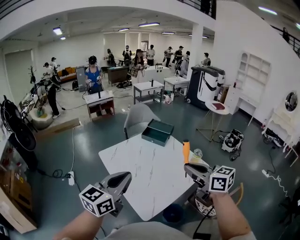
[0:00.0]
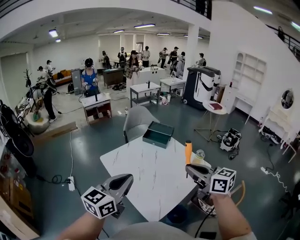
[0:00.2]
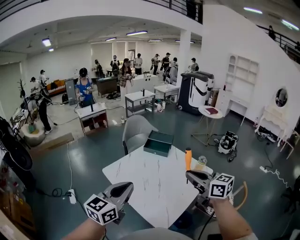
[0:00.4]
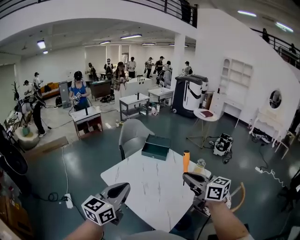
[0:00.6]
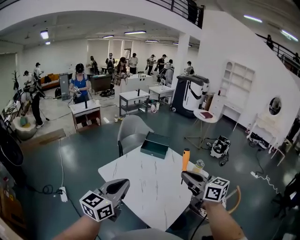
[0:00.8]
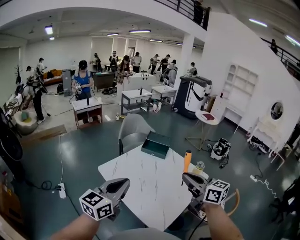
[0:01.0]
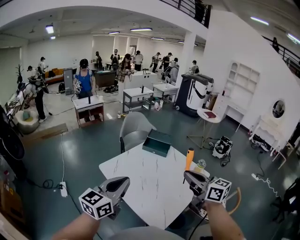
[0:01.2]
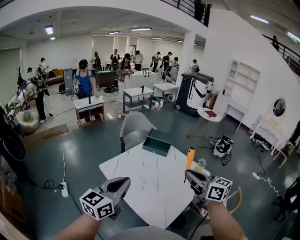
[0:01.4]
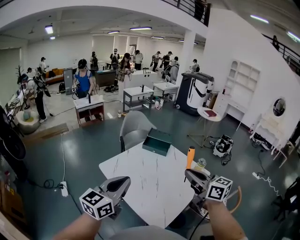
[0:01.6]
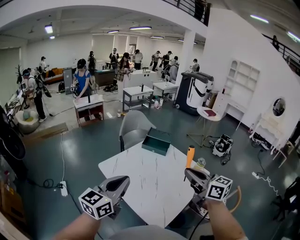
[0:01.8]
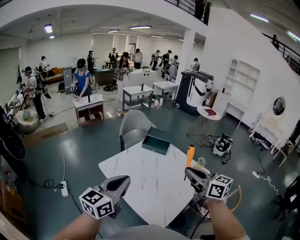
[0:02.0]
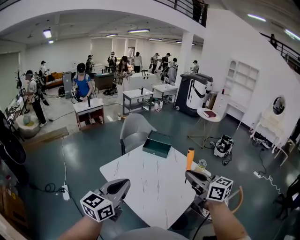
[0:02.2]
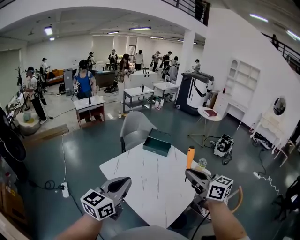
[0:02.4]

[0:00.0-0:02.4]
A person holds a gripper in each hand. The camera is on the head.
0.0 to 1.2 s: The left gripper moves to the left and forward, about 15 cm, while the right gripper is displaced to the left by approximately 10 cm.
1.2 to 2.4 s: Neither gripper changes place.

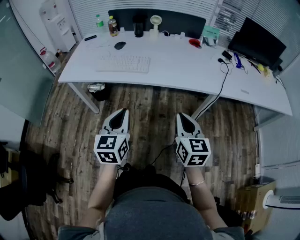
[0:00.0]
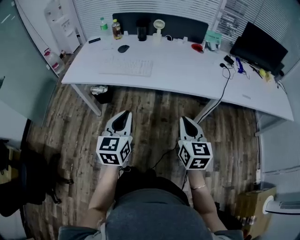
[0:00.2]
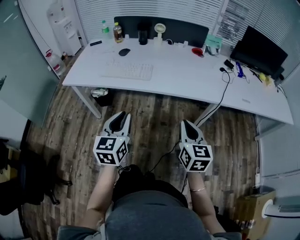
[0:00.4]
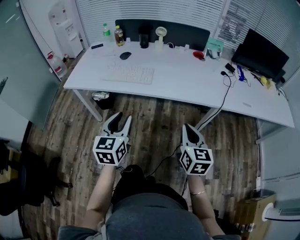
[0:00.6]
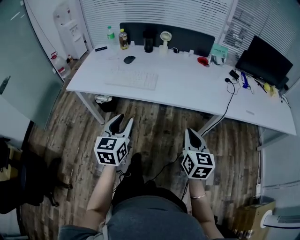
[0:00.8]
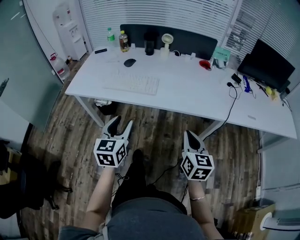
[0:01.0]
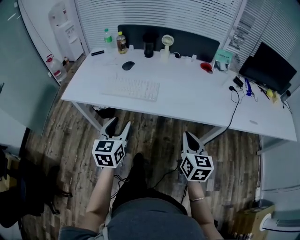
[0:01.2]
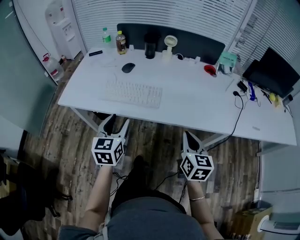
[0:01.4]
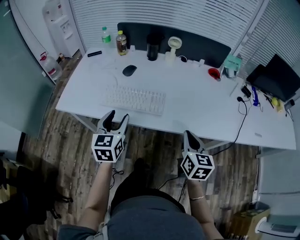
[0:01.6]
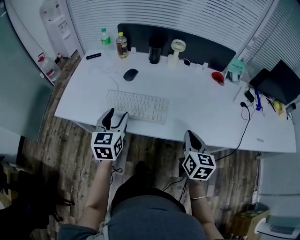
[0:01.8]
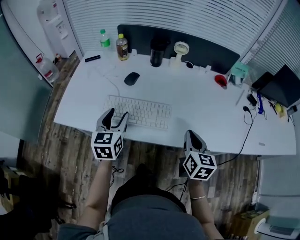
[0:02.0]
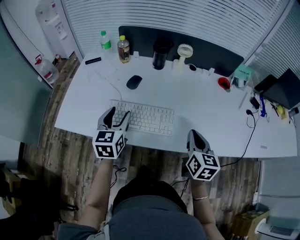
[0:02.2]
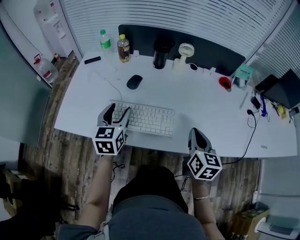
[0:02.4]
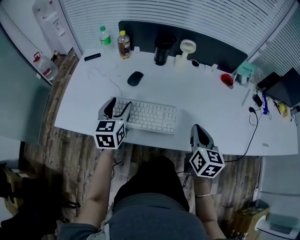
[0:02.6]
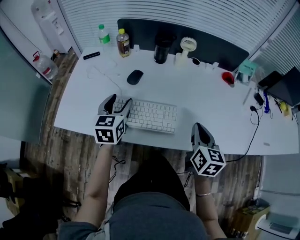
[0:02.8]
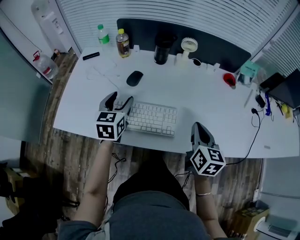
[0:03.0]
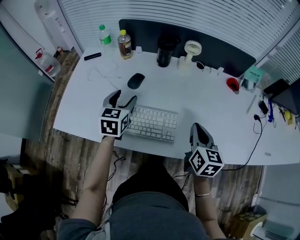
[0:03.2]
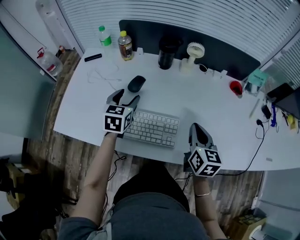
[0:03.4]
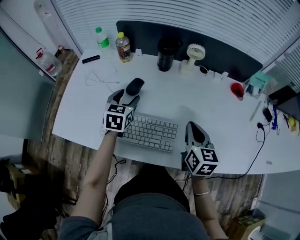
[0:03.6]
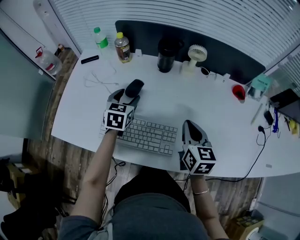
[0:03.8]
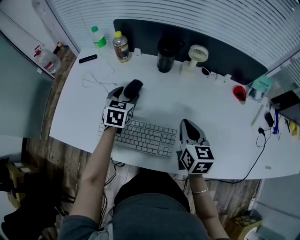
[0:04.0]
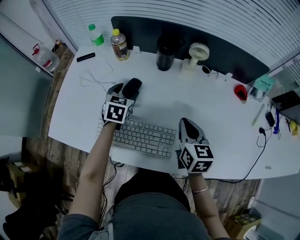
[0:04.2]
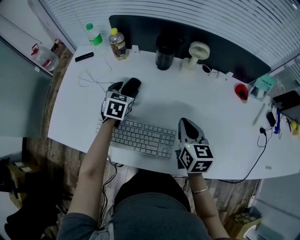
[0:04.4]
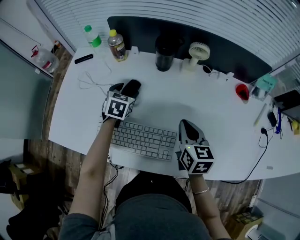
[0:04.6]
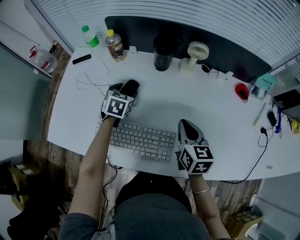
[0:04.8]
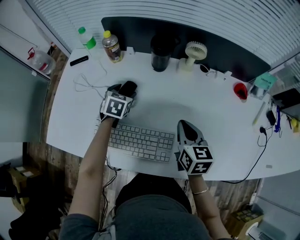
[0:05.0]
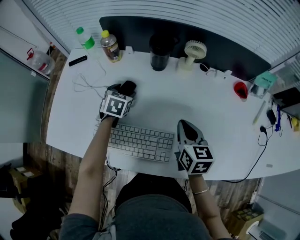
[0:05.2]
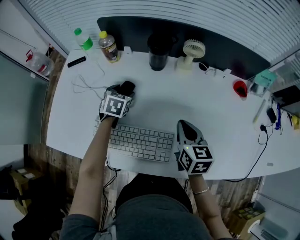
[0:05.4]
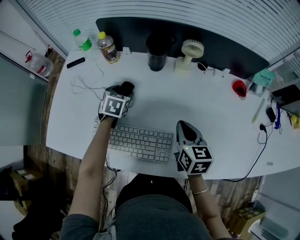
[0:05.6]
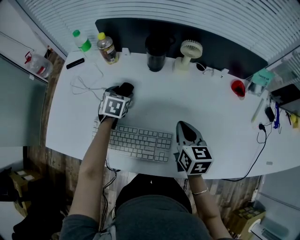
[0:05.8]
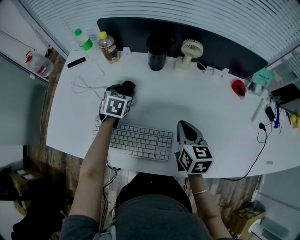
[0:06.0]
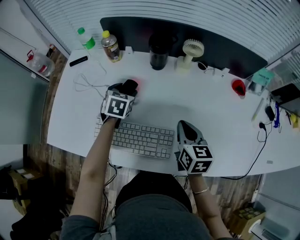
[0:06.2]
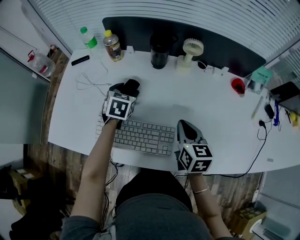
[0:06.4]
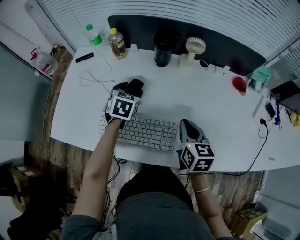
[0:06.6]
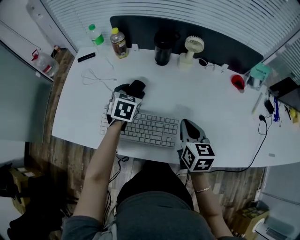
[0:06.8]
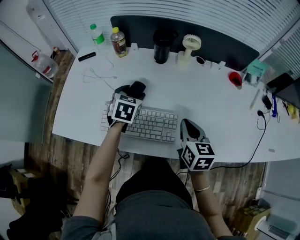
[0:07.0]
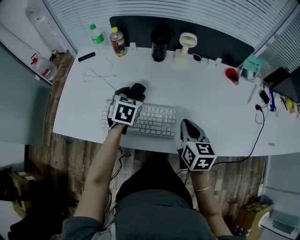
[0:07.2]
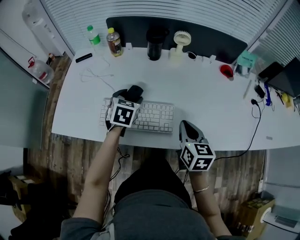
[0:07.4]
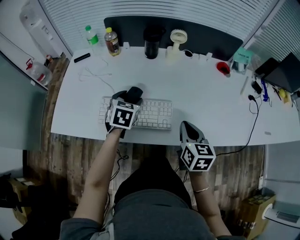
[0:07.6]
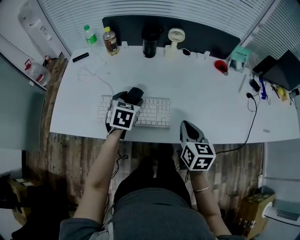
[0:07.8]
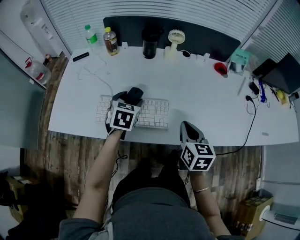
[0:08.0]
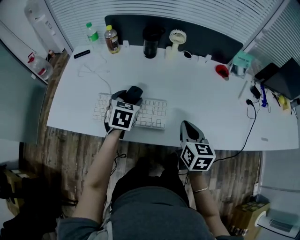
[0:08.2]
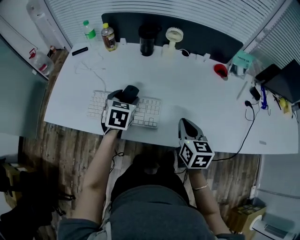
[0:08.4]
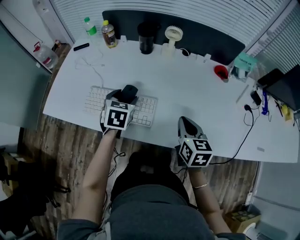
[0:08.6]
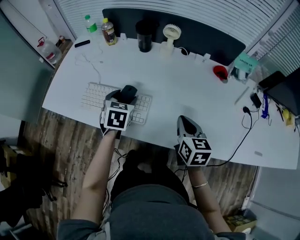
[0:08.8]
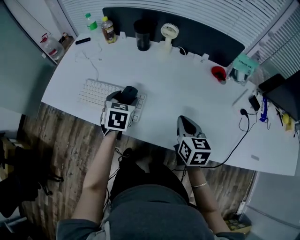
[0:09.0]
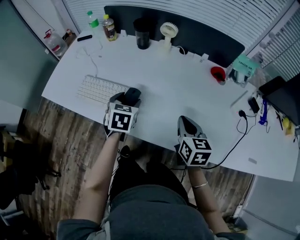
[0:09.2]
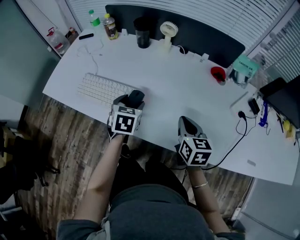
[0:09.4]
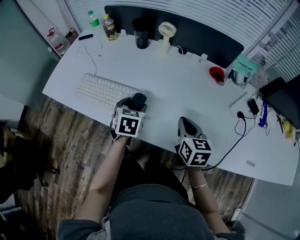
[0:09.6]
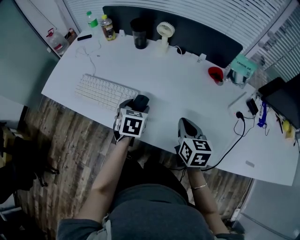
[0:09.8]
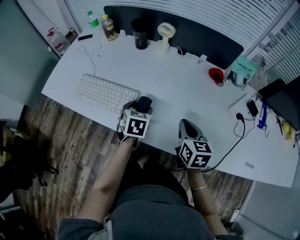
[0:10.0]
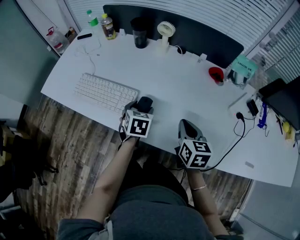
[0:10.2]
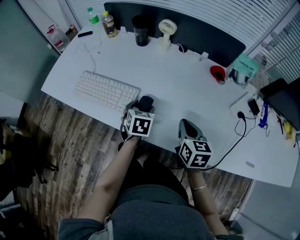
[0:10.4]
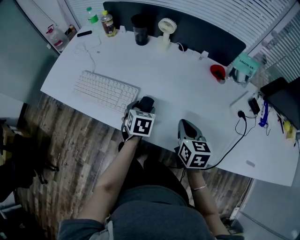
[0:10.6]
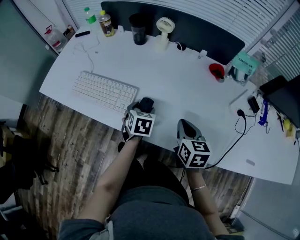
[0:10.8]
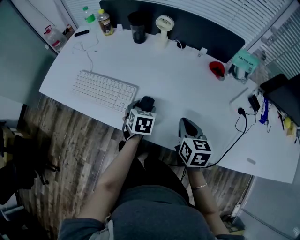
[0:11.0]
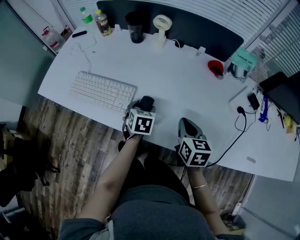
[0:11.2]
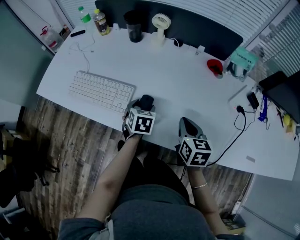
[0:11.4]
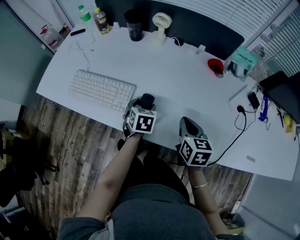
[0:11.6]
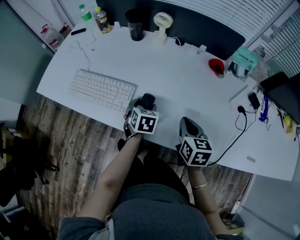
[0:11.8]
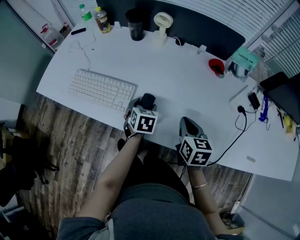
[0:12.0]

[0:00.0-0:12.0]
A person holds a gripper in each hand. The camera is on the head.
0.0 to 1.6 s: The right gripper goes approximately 20 cm forward. The left gripper is displaced forward and to the left by roughly 30 cm, and opens.
1.6 to 3.0 s: Both grippers move forward, some 20 cm.
3.0 to 4.4 s: The right gripper moves forward, some 15 cm. The left gripper moves forward and downward, about 20 cm.
4.4 to 6.0 s: There are only small adjustments of the grippers.
6.0 to 7.6 s: The right gripper heads backward, covering roughly 15 cm. Meanwhile the left gripper heads backward and upward, covering some 20 cm.
7.6 to 9.0 s: Both grippers move to the right, some 10 cm.
9.0 to 10.4 s: The right gripper goes about 5 cm to the right, while the left gripper moves to the right and downward, approximately 10 cm.
10.4 to 12.0 s: The grippers move only a little.

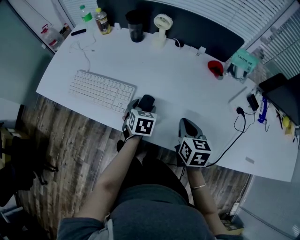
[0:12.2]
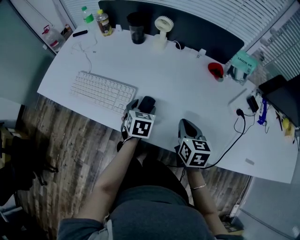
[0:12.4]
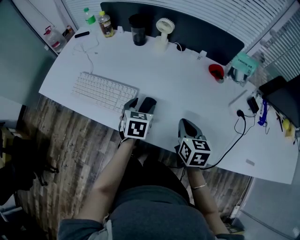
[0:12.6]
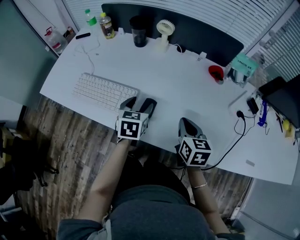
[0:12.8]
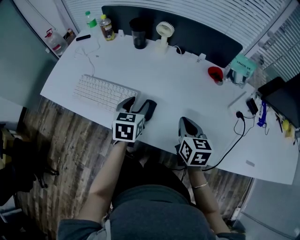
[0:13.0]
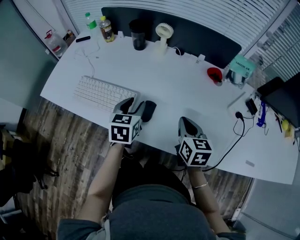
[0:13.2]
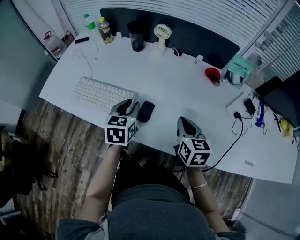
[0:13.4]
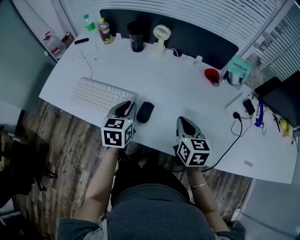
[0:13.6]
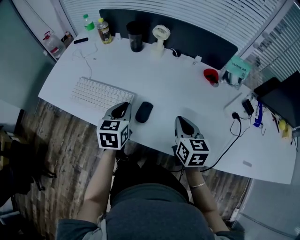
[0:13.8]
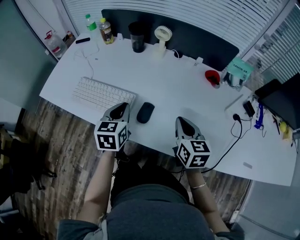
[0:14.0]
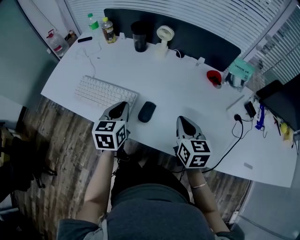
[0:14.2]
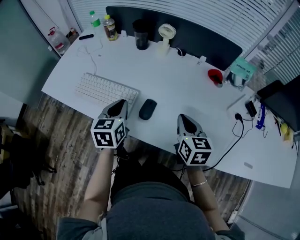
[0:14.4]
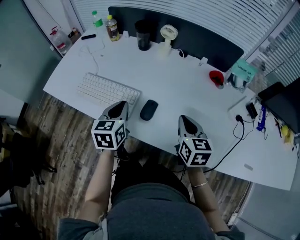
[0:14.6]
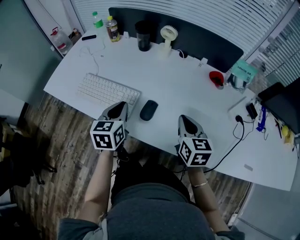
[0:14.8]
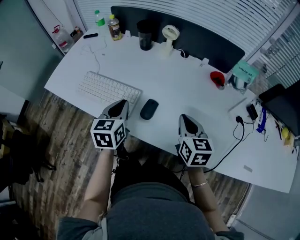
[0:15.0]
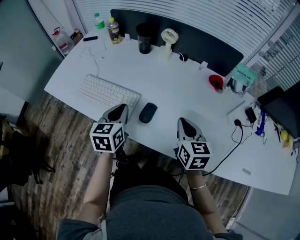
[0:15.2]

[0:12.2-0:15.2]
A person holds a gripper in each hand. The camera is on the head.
12.2 to 13.8 s: The right gripper ends up approximately 5 cm from where it was, while the left gripper moves upward and to the left, some 15 cm, swivels about 20 degrees, and closes up.
13.8 to 15.2 s: The grippers stay close to where they were, moving slightly.

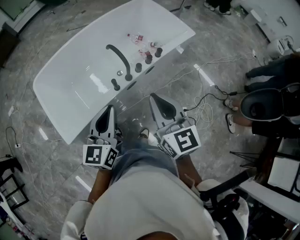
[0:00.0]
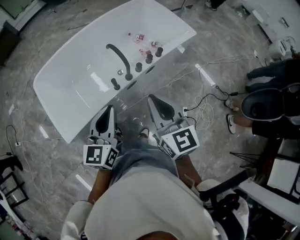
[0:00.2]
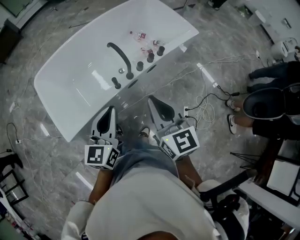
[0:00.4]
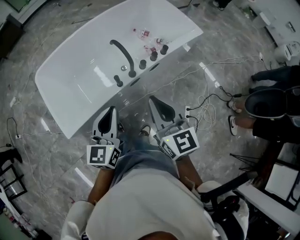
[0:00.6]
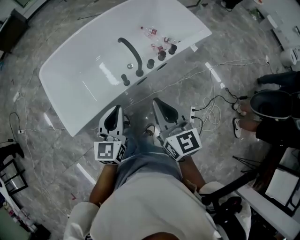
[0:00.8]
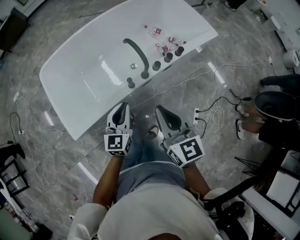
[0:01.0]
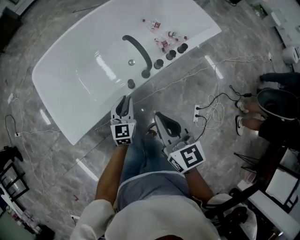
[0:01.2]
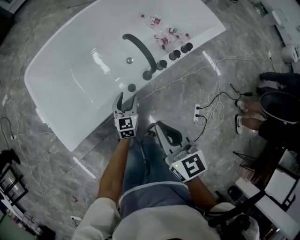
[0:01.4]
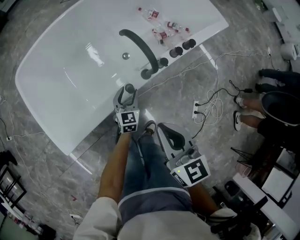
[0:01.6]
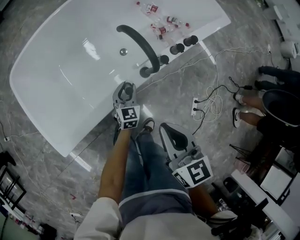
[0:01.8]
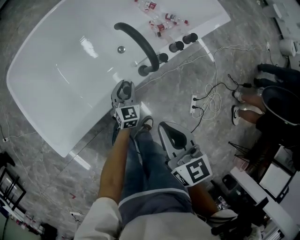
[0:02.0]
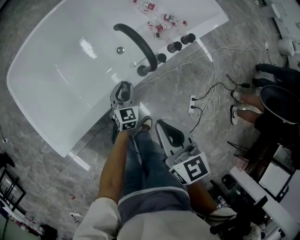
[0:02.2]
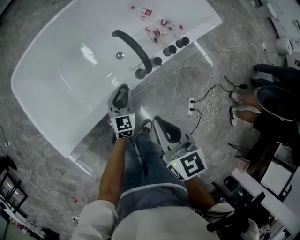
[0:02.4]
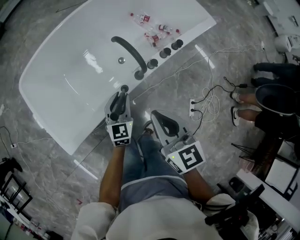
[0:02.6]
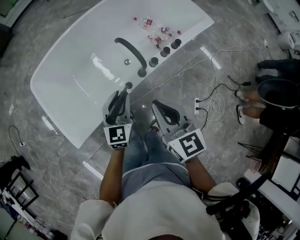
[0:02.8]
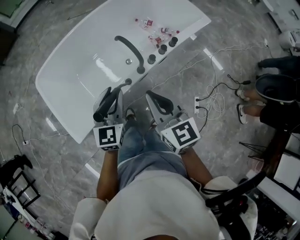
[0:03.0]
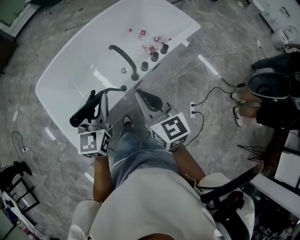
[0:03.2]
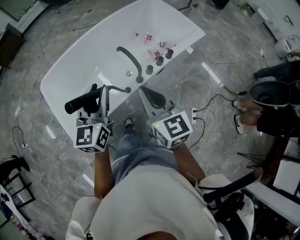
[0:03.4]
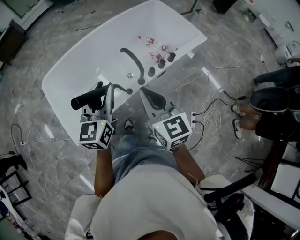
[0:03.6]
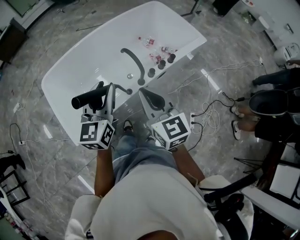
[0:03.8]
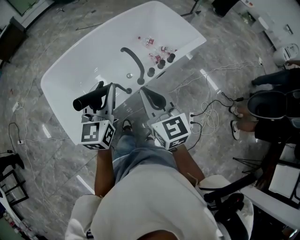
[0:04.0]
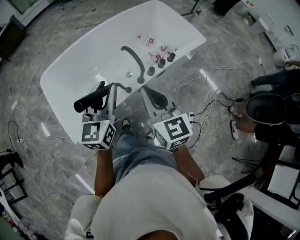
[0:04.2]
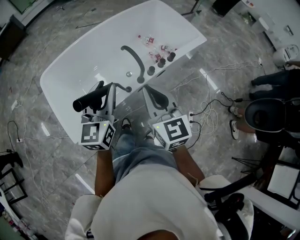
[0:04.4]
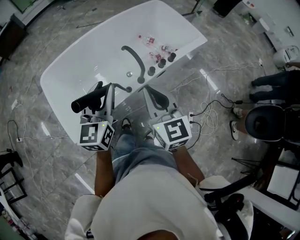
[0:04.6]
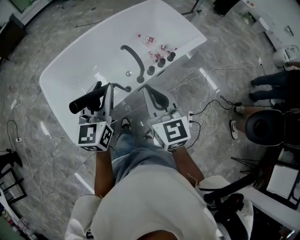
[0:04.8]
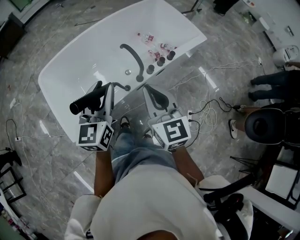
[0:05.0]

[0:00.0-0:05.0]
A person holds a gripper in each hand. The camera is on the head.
0.0 to 1.6 s: The left gripper goes some 60 cm downward, changes its angle by about 20 degrees, and opens its fingers. Meanwhile the right gripper goes roughly 40 cm downward.
1.6 to 3.4 s: The right gripper travels upward by roughly 40 cm. Meanwhile the left gripper goes roughly 60 cm upward, and closes its fingers.
3.4 to 5.0 s: There are only small adjustments of the grippers.

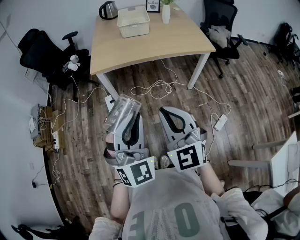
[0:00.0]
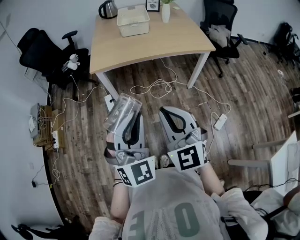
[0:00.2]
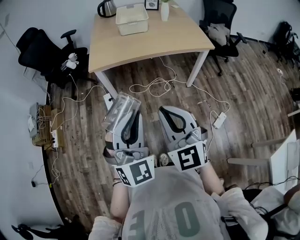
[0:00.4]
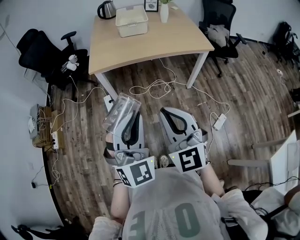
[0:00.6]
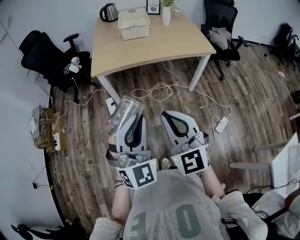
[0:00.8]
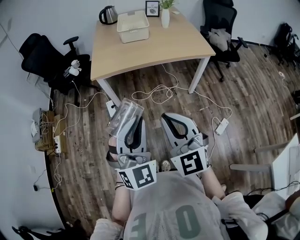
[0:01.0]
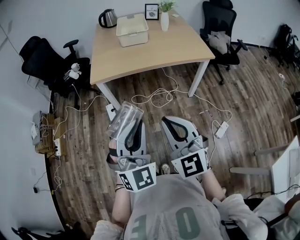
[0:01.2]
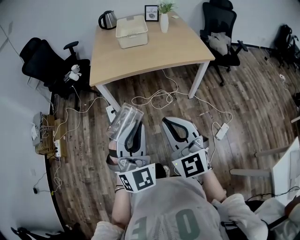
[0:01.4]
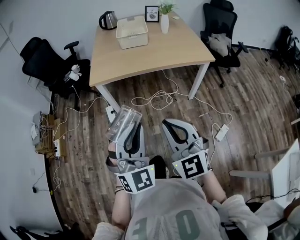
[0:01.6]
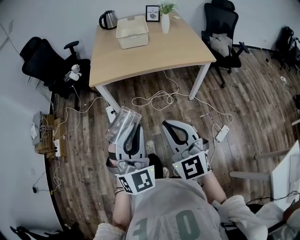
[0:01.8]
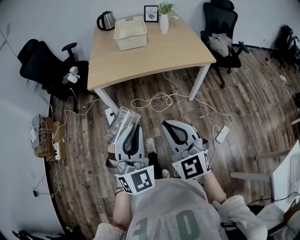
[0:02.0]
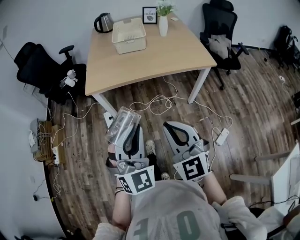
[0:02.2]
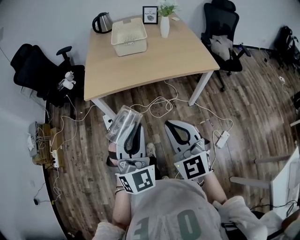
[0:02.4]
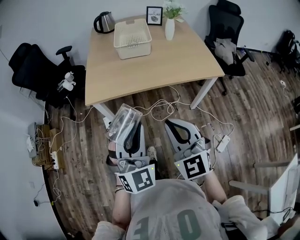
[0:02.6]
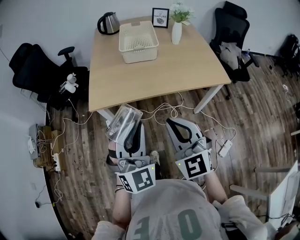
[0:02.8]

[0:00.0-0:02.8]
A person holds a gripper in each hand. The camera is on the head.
0.0 to 1.4 s: The grippers make only small movements.
1.4 to 2.8 s: Both grippers travel together forward, about 25 cm.
